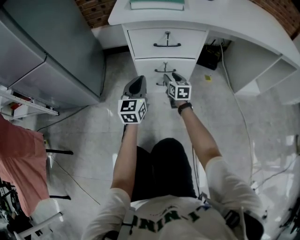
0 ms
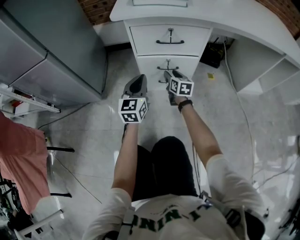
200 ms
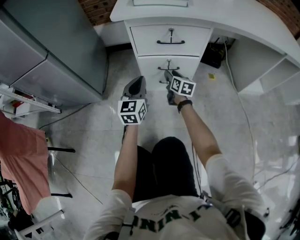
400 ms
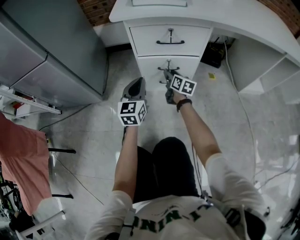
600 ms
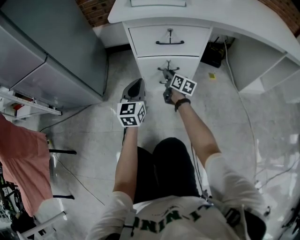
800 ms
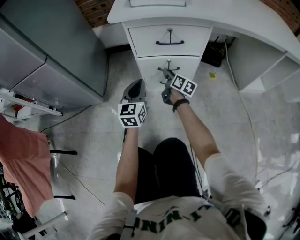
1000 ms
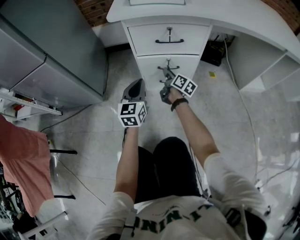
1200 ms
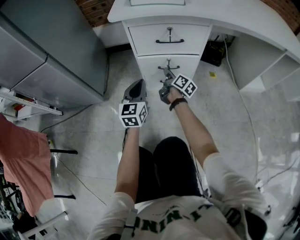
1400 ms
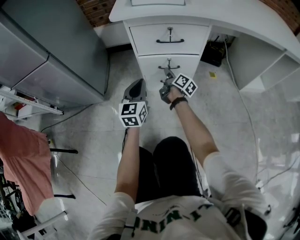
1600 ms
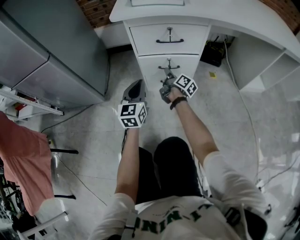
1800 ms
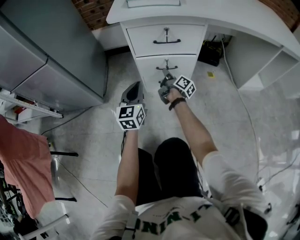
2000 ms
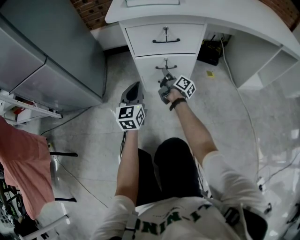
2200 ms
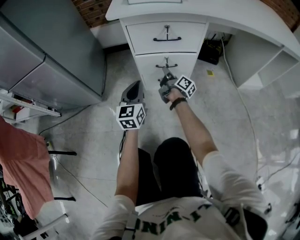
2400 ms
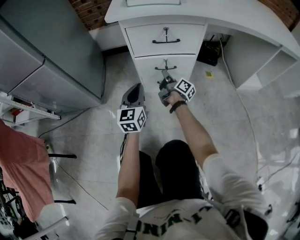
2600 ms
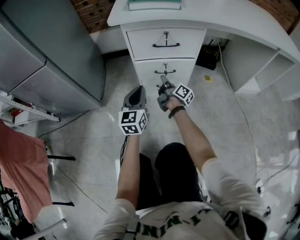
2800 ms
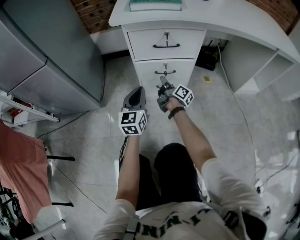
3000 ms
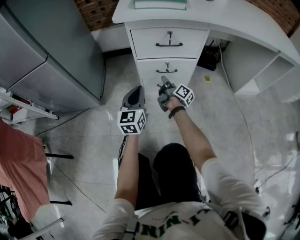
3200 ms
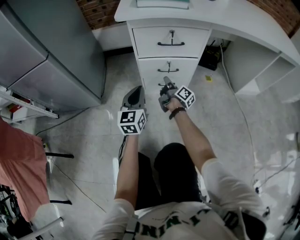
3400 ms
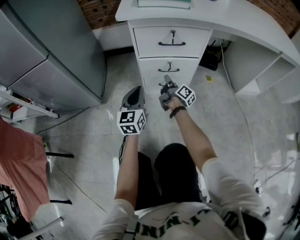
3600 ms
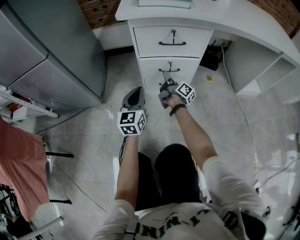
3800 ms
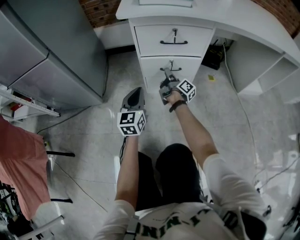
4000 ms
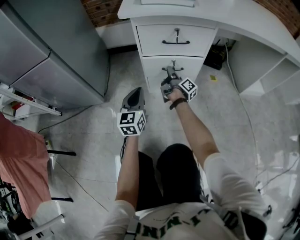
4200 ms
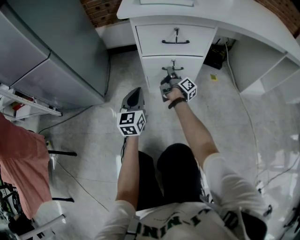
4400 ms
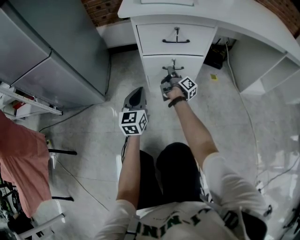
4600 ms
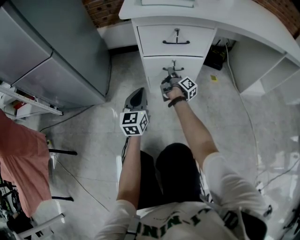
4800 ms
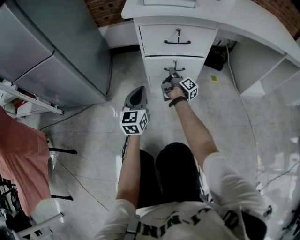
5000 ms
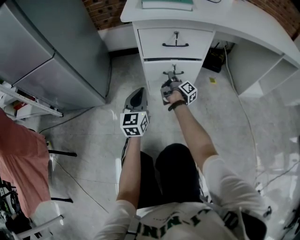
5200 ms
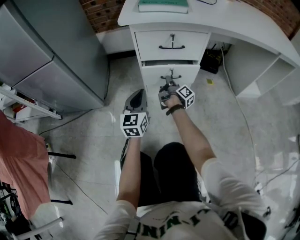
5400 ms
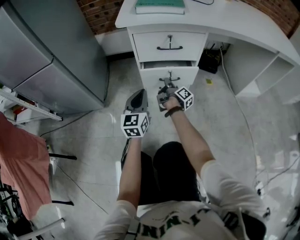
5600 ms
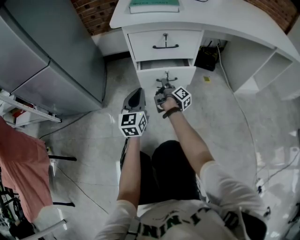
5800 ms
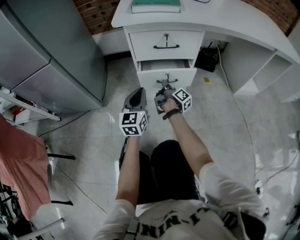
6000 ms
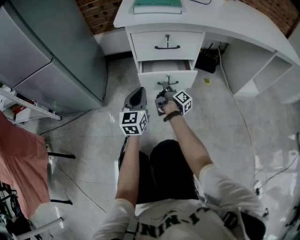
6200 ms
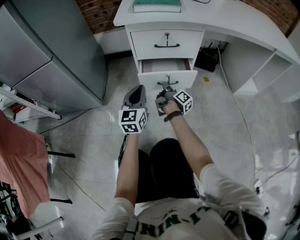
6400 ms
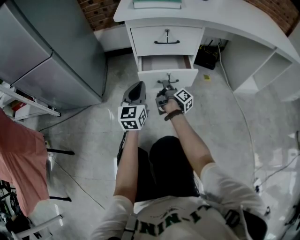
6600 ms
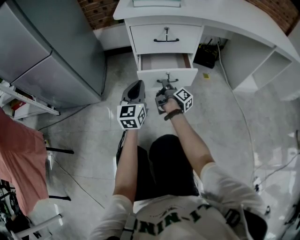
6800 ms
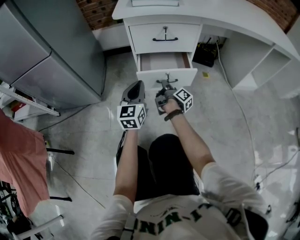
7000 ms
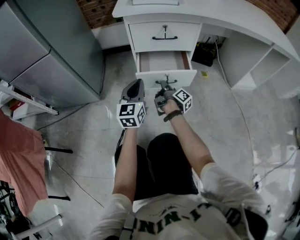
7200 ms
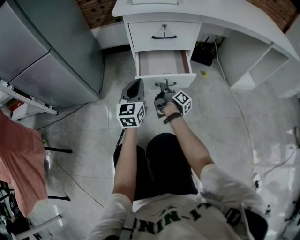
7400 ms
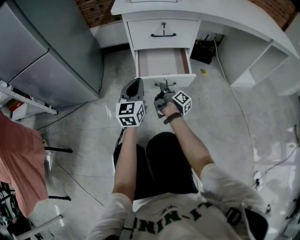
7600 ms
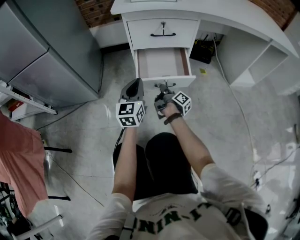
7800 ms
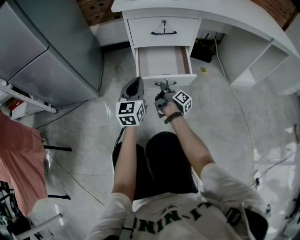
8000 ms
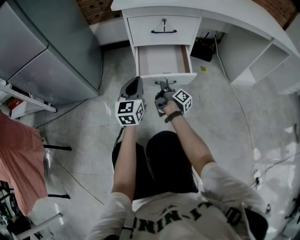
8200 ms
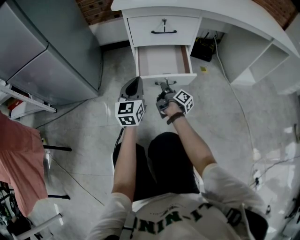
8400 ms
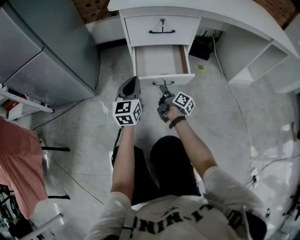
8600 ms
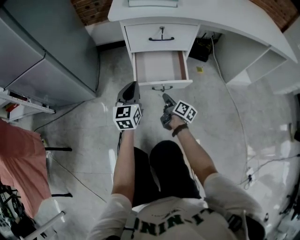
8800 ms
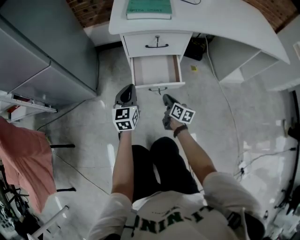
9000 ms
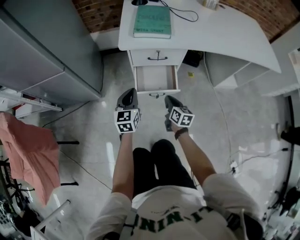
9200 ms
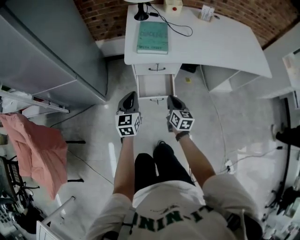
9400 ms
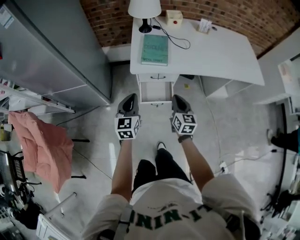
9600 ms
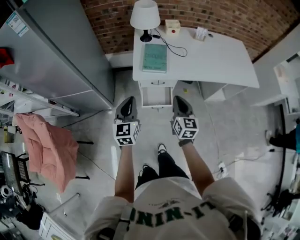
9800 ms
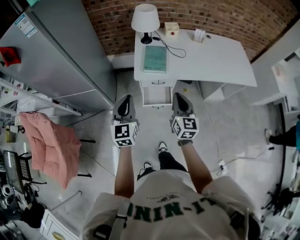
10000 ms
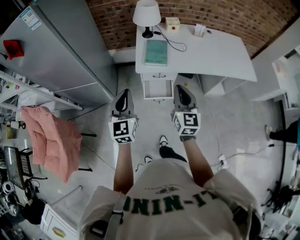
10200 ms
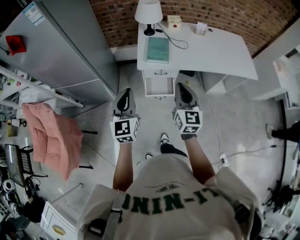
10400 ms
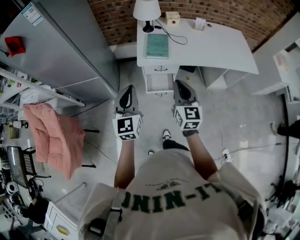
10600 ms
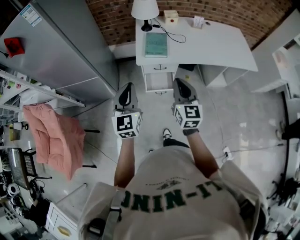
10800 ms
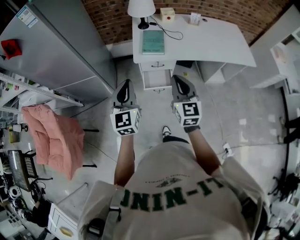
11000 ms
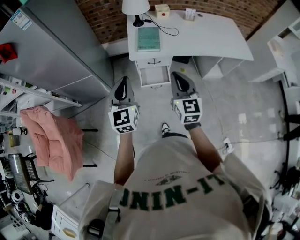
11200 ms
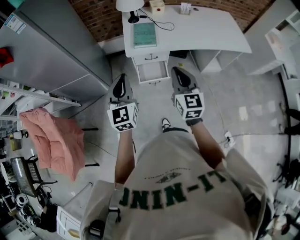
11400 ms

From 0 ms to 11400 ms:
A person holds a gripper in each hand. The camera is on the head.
From 0 ms to 1400 ms: The right gripper rotates around the line of its fingers by some 50 degrees, clockwise from behind, and closes up.
From 1400 ms to 2800 ms: There are only small adjustments of the grippers.
From 2800 ms to 4200 ms: The right gripper opens up.
From 4200 ms to 5600 ms: The grippers make only small movements.
From 5600 ms to 7200 ms: The right gripper heads backward, covering roughly 10 cm.
From 7200 ms to 8600 ms: The right gripper shifts by roughly 5 cm.
From 8600 ms to 10000 ms: Both grippers move upward, some 70 cm. The right gripper twists roughly 70 degrees counterclockwise, seen from behind.
From 10000 ms to 11400 ms: The left gripper is displaced backward by about 5 cm; the right gripper goes approximately 10 cm backward and upward.

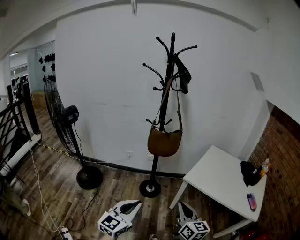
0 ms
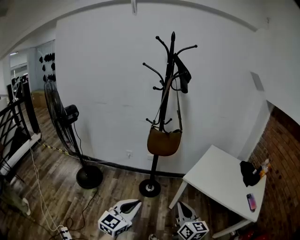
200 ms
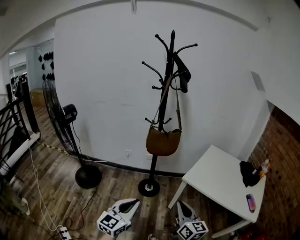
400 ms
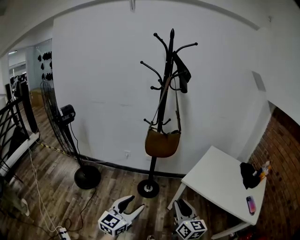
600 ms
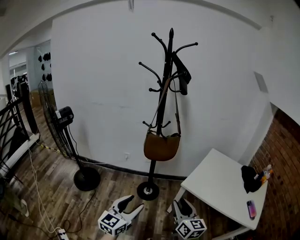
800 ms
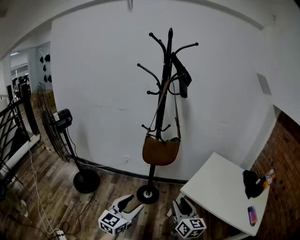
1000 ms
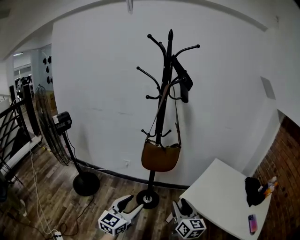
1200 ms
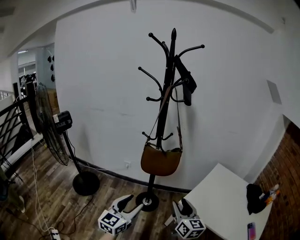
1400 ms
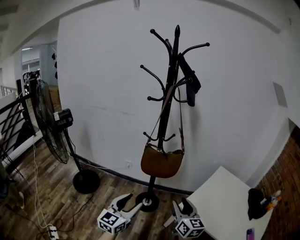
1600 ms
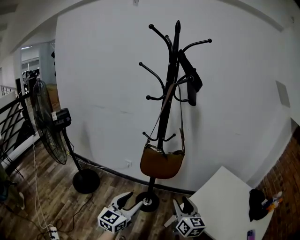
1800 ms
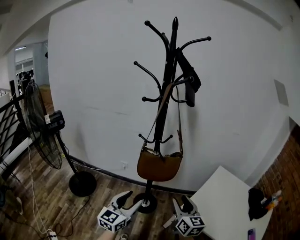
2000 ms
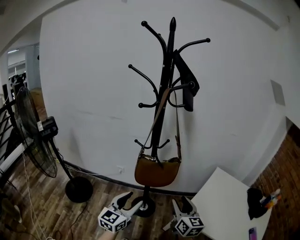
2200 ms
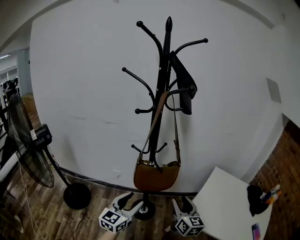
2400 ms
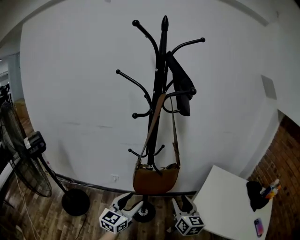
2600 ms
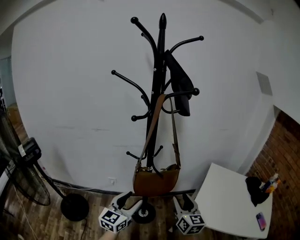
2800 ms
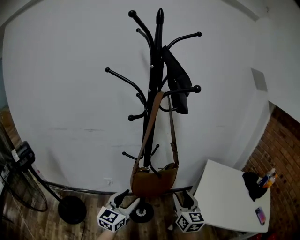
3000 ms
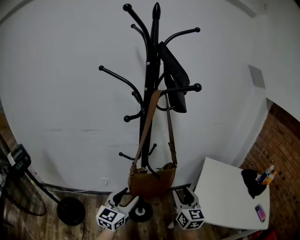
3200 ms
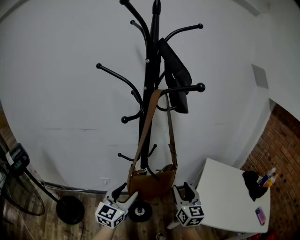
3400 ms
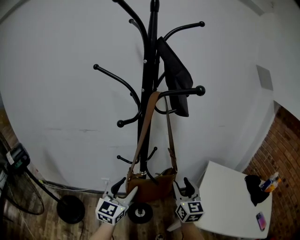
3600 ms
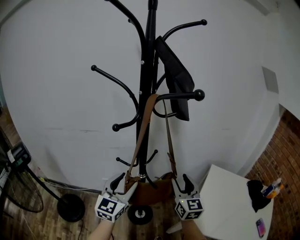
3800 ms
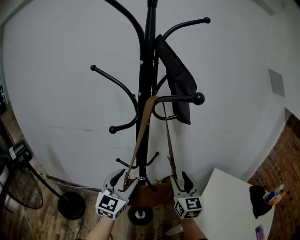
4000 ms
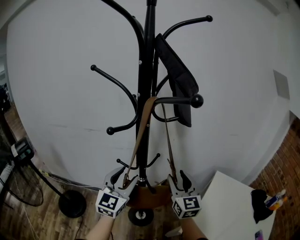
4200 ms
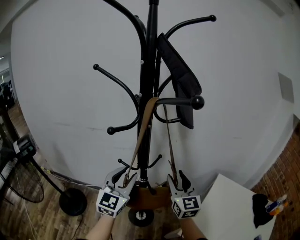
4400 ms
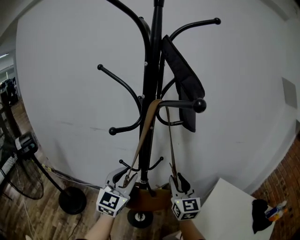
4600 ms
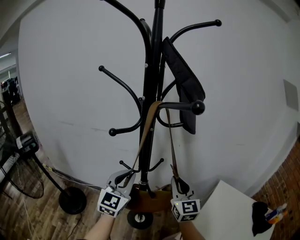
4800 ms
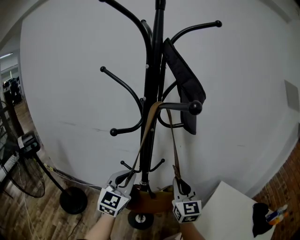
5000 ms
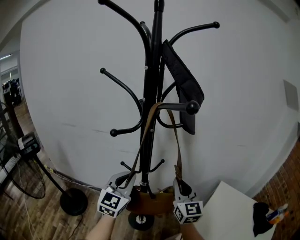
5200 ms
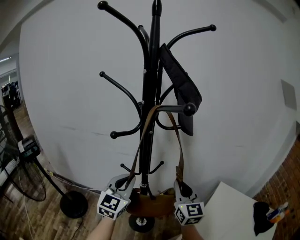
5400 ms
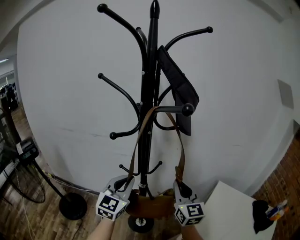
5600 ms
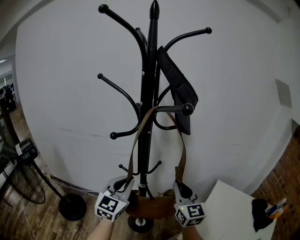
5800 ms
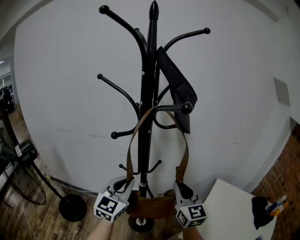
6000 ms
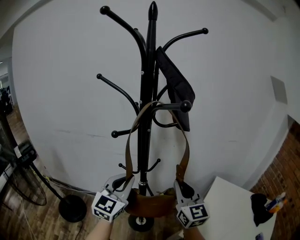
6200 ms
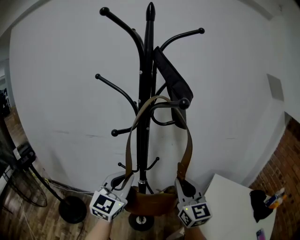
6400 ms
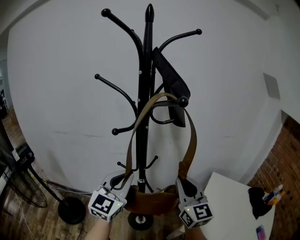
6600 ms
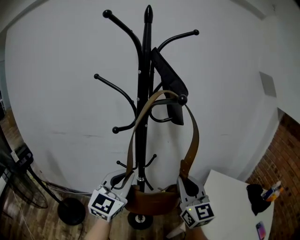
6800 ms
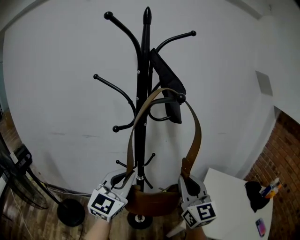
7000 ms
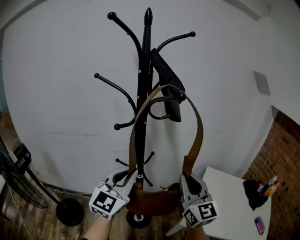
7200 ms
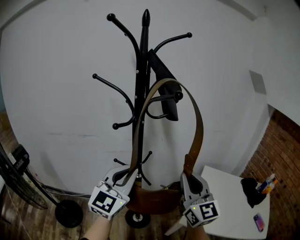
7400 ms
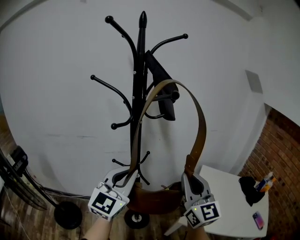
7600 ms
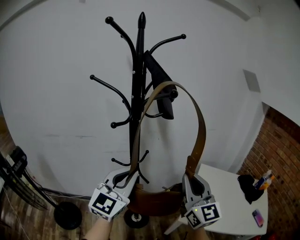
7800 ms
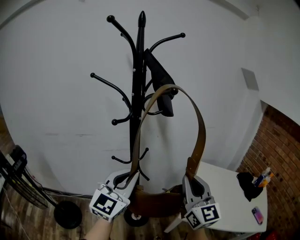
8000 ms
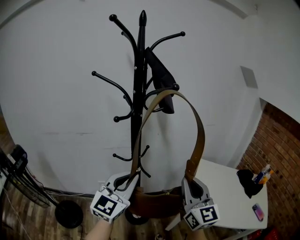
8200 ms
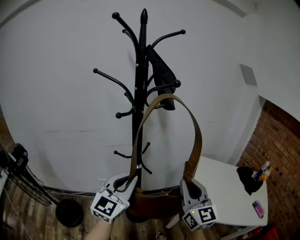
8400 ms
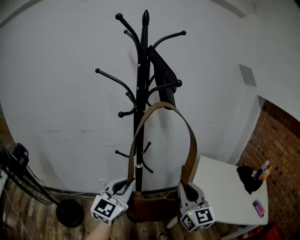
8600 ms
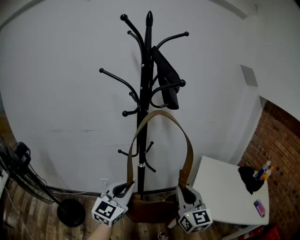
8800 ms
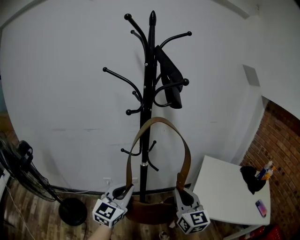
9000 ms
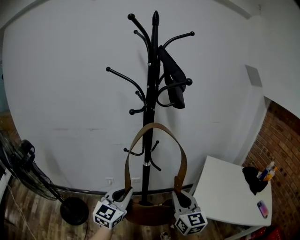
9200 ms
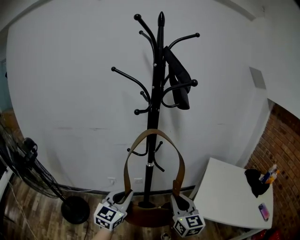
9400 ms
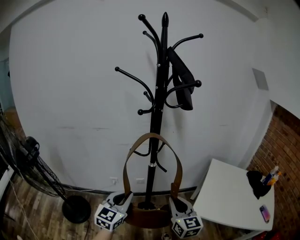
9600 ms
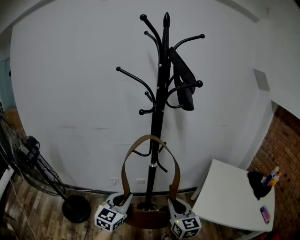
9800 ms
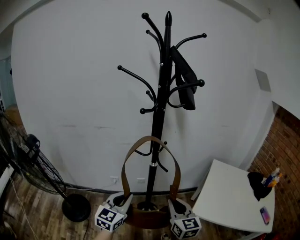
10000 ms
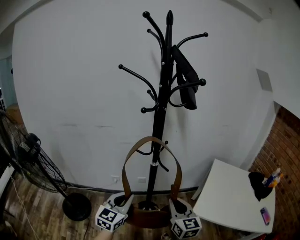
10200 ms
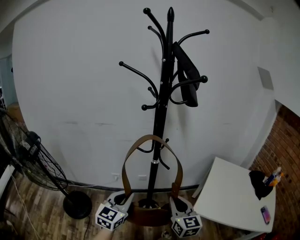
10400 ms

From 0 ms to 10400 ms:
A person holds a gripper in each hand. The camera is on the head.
From 0 ms to 1400 ms: The two grippers go approximately 20 cm forward. The right gripper opens up; the left gripper opens up.
From 1400 ms to 3000 ms: Both grippers travel together forward, roughly 20 cm. The right gripper turns by some 20 degrees.
From 3000 ms to 4400 ms: The right gripper moves forward, approximately 15 cm, and rotates roughly 20 degrees. The left gripper is displaced forward and upward by some 15 cm, and rotates approximately 20 degrees.
From 4400 ms to 6000 ms: The right gripper changes place by approximately 5 cm, and closes, while the left gripper closes its fingers.
From 6000 ms to 7400 ms: The right gripper heads backward and upward, covering some 15 cm; the left gripper moves upward and backward, about 10 cm.
From 7400 ms to 9000 ms: Both grippers move downward and backward, approximately 15 cm.
From 9000 ms to 10400 ms: The two grippers go roughly 5 cm downward.

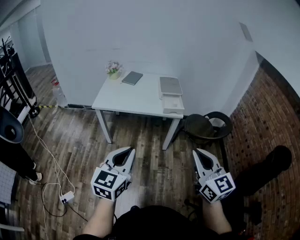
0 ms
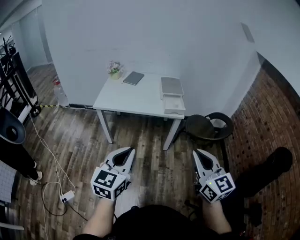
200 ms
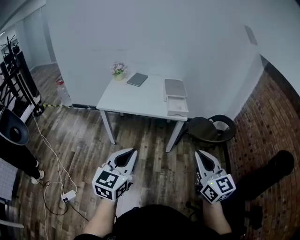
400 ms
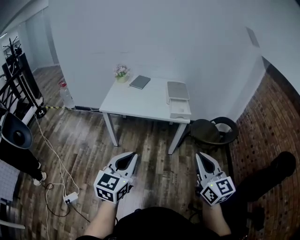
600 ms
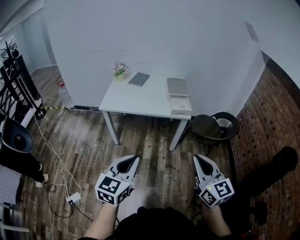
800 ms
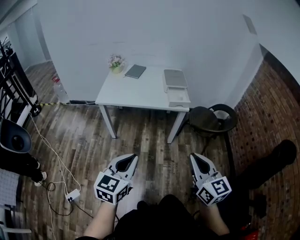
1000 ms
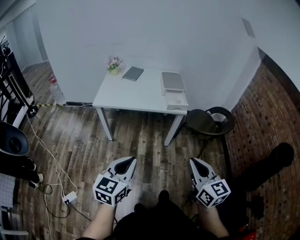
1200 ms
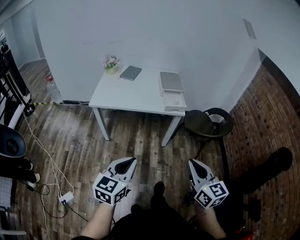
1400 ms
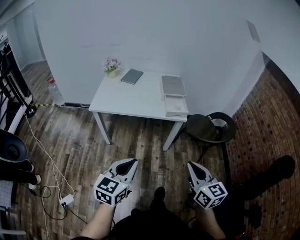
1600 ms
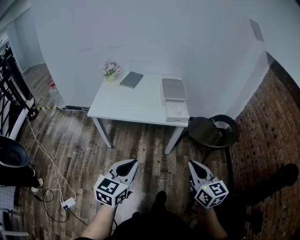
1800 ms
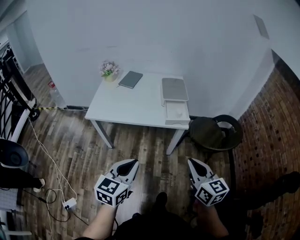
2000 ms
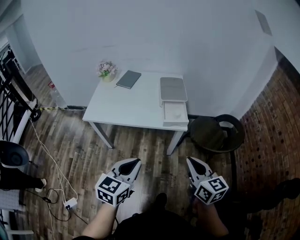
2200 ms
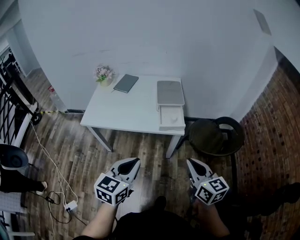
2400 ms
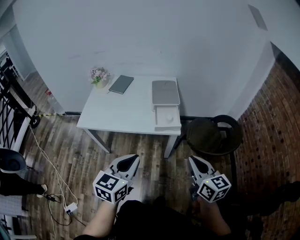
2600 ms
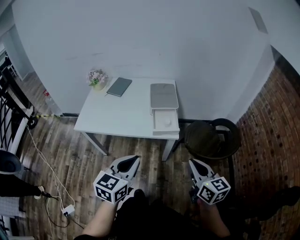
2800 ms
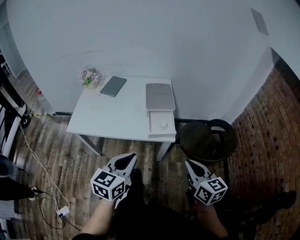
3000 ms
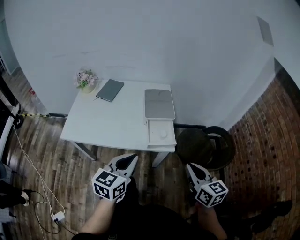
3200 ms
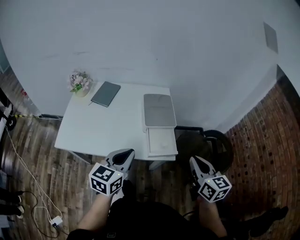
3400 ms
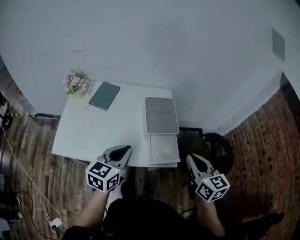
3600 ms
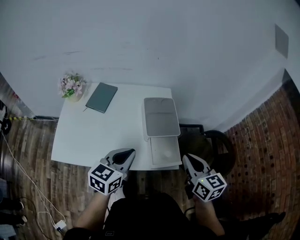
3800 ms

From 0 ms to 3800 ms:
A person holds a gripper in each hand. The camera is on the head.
From 0 ms to 1200 ms: Both grippers move downward, approximately 5 cm.
From 1200 ms to 2600 ms: The grippers both shift forward and to the right by roughly 30 cm.
From 2600 ms to 3800 ms: Both grippers move forward, roughly 30 cm.
